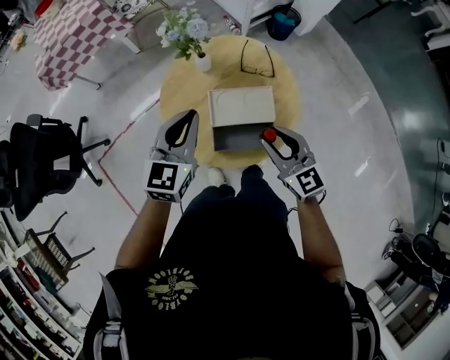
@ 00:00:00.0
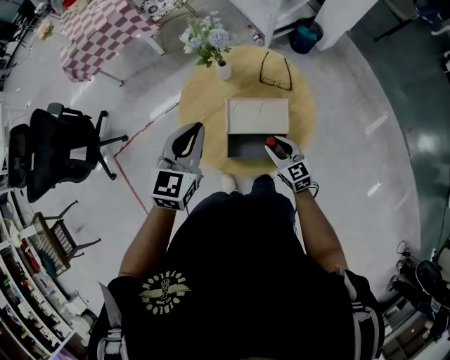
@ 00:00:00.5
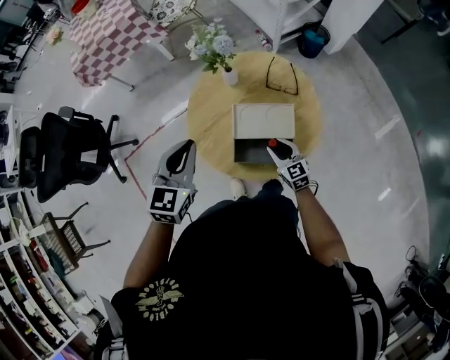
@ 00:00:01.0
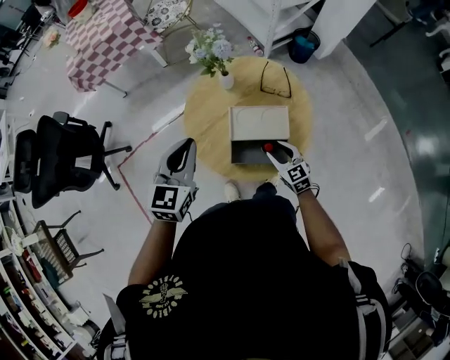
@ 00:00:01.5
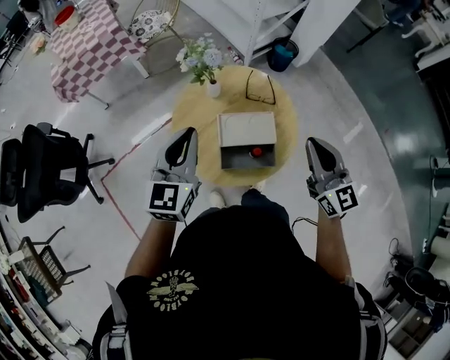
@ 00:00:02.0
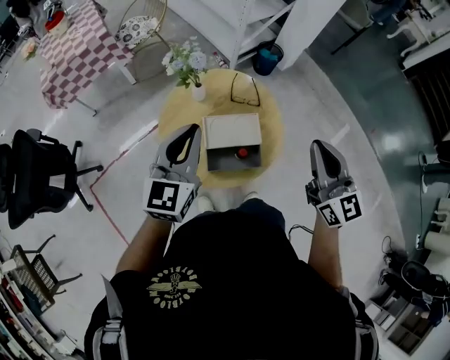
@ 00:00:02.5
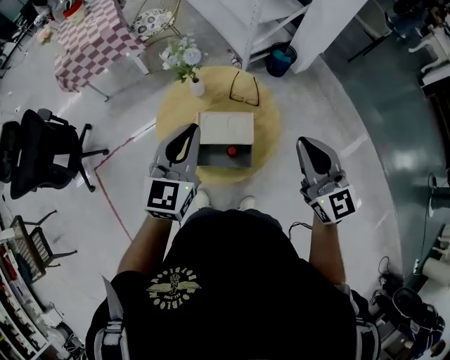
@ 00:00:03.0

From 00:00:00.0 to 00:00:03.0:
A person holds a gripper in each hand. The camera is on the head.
From 00:00:00.0 to 00:00:01.5: The right gripper shifts some 15 cm downward; the left gripper is displaced to the left by approximately 5 cm.
From 00:00:01.5 to 00:00:03.0: The right gripper goes approximately 35 cm upward, turns by about 30 degrees, and closes its fingers; the left gripper is displaced to the right and upward by some 15 cm.

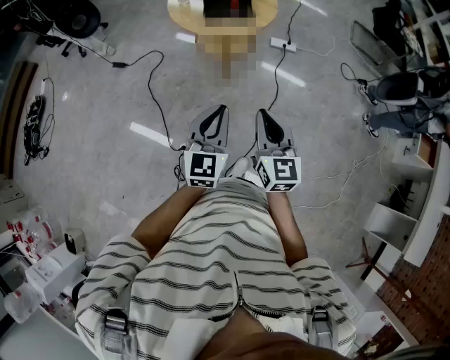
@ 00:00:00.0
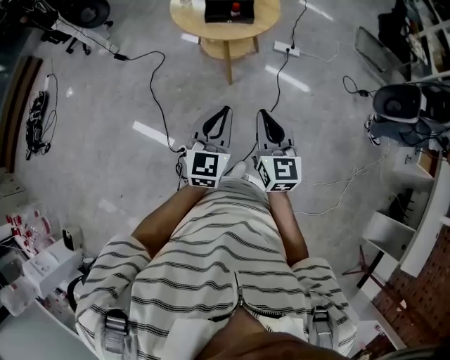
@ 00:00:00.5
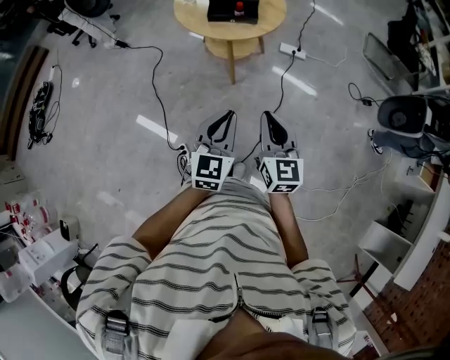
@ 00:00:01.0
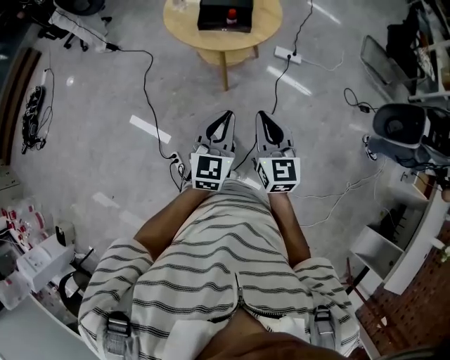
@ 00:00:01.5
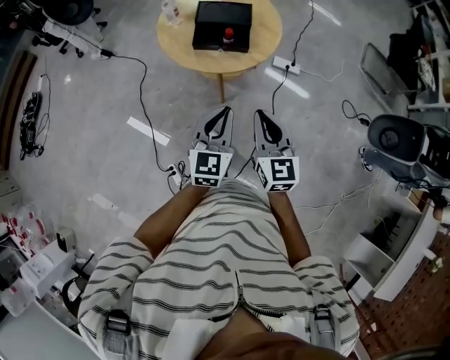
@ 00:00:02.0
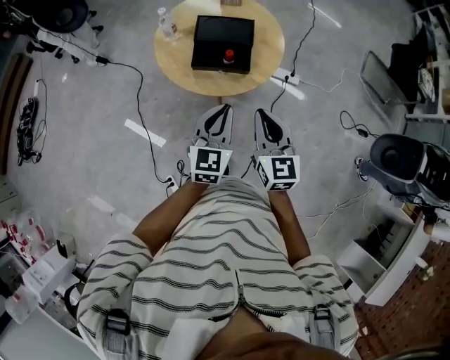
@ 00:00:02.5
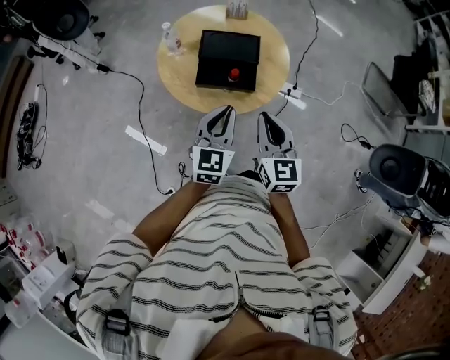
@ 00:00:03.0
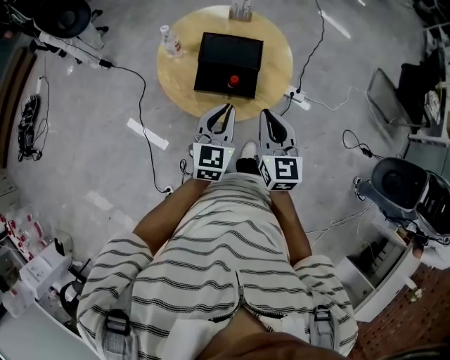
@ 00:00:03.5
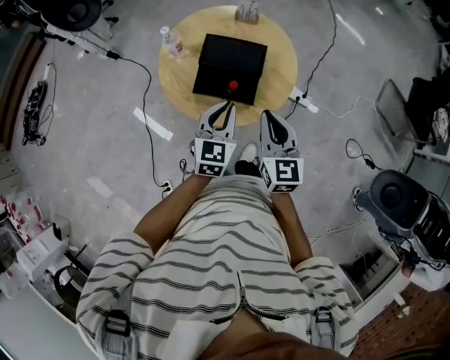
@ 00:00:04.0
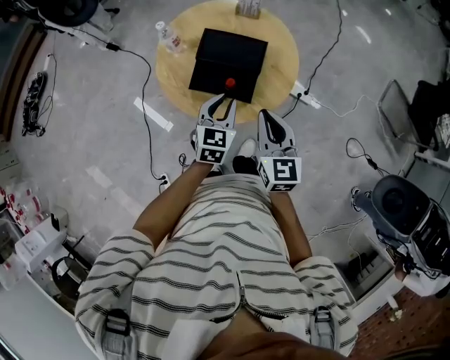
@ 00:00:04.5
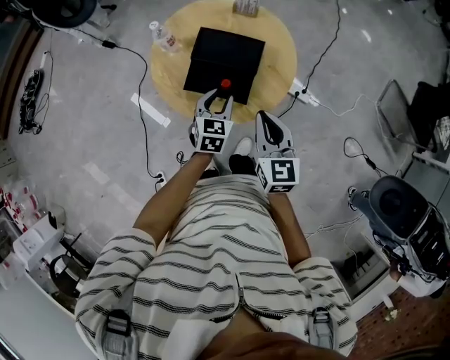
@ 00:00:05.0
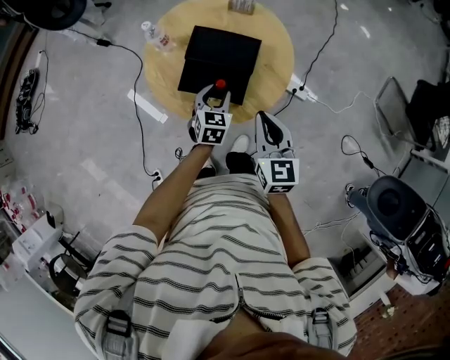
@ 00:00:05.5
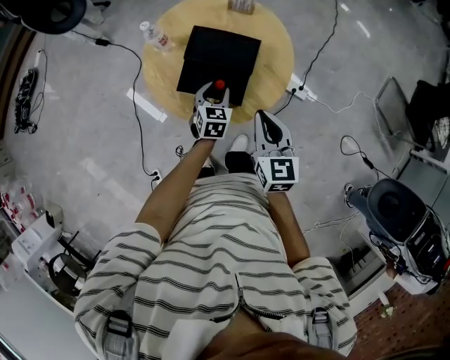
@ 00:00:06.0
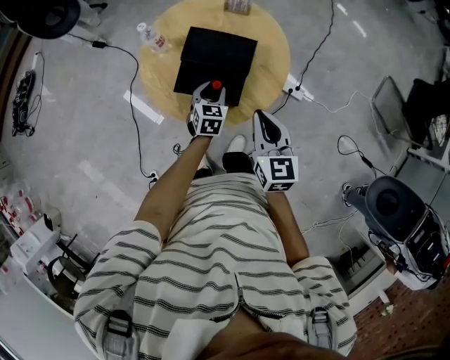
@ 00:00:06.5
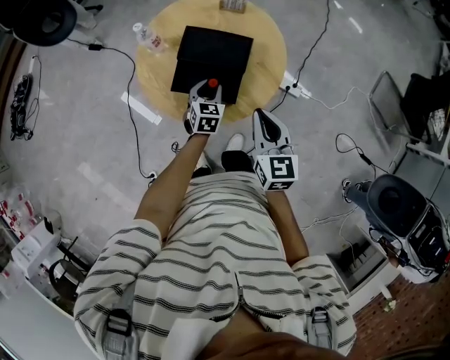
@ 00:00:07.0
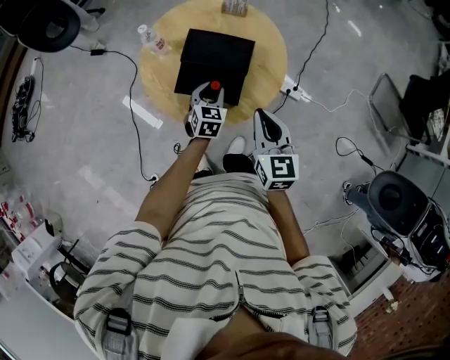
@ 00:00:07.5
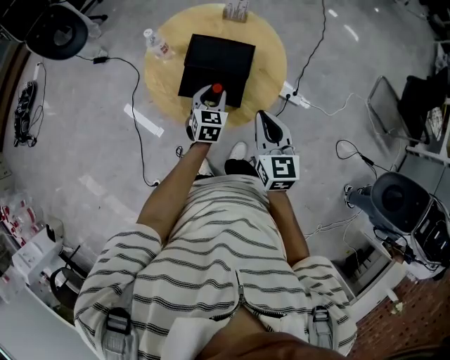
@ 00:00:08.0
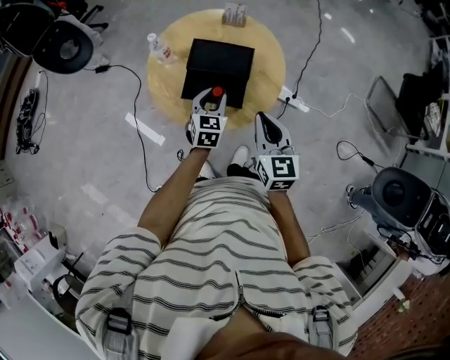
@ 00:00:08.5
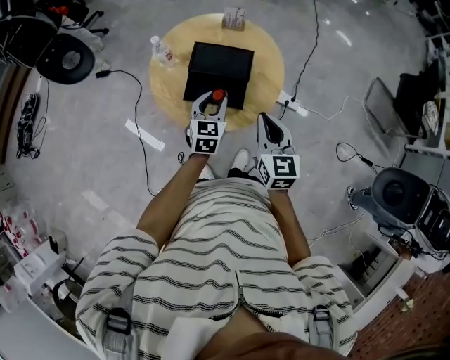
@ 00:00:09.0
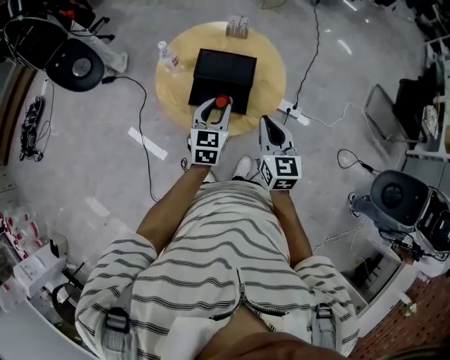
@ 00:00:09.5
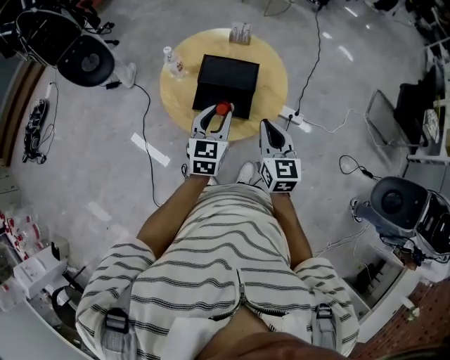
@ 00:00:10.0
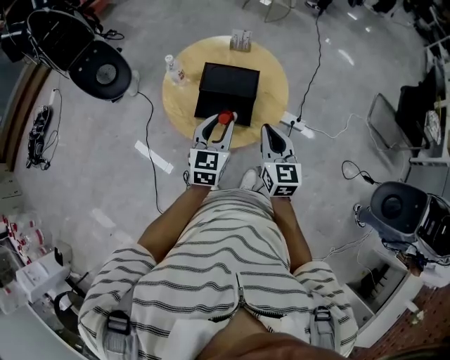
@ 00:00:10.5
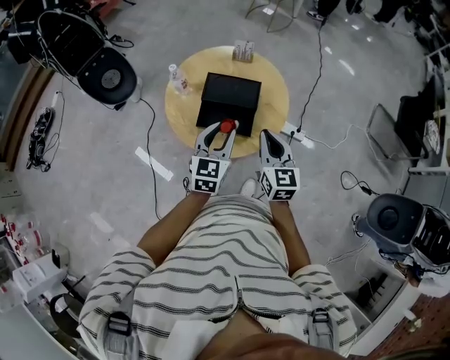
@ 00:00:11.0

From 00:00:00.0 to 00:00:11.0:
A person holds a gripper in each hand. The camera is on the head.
From 00:00:00.0 to 00:00:02.0: The grippers both shift forward by approximately 25 cm.
From 00:00:02.0 to 00:00:03.5: Both grippers travel together forward, approximately 25 cm.
From 00:00:03.5 to 00:00:05.5: The left gripper travels downward and forward by about 20 cm, turns by approximately 20 degrees, and opens. Meanwhile the right gripper goes approximately 5 cm forward.
From 00:00:05.5 to 00:00:07.5: The grippers make only small movements.
From 00:00:07.5 to 00:00:09.0: The left gripper travels upward by some 10 cm.
From 00:00:09.0 to 00:00:11.0: The left gripper is displaced upward by approximately 10 cm.

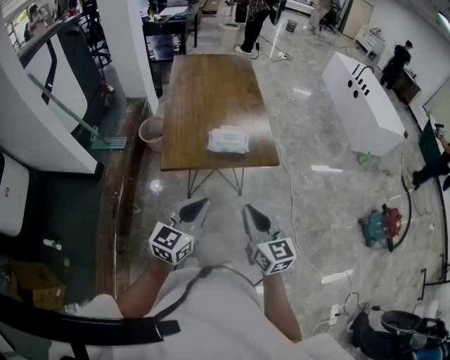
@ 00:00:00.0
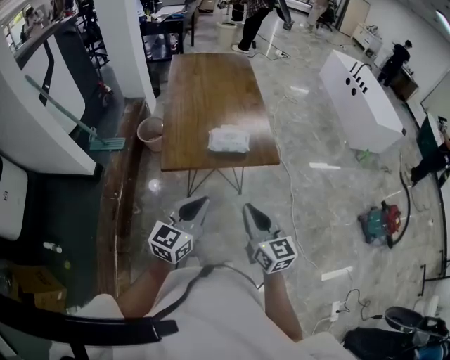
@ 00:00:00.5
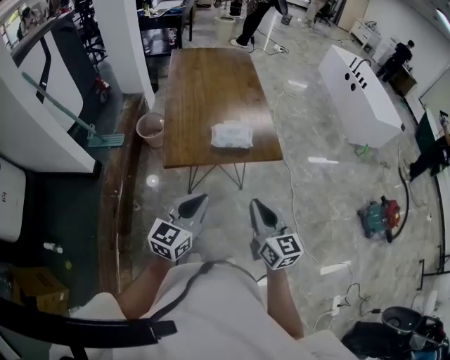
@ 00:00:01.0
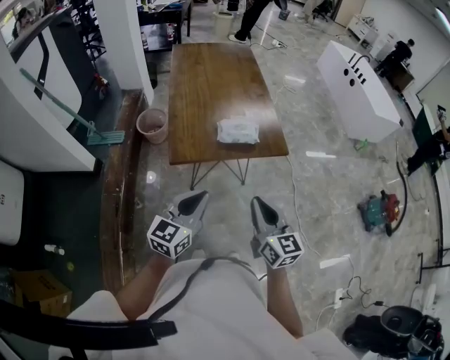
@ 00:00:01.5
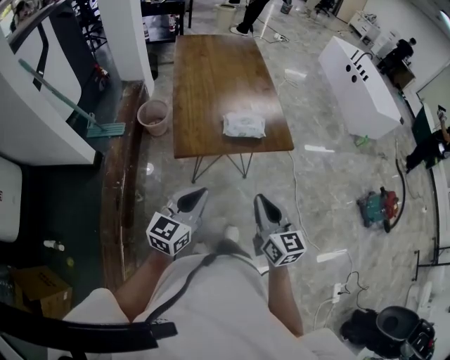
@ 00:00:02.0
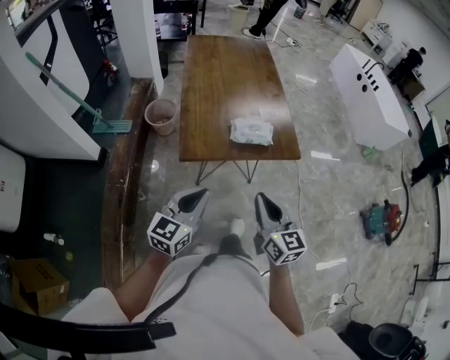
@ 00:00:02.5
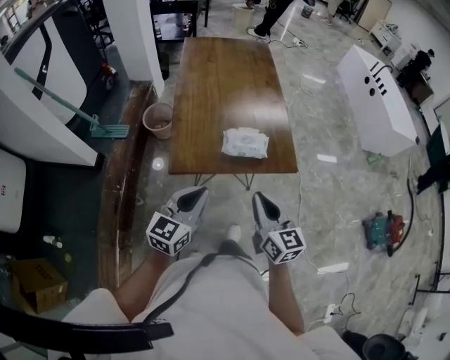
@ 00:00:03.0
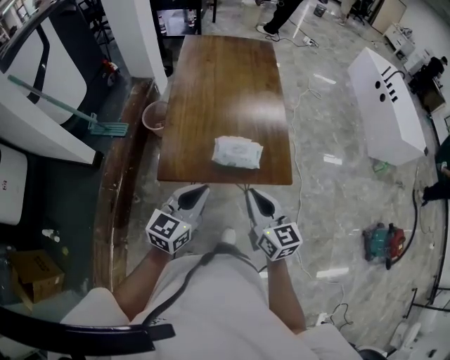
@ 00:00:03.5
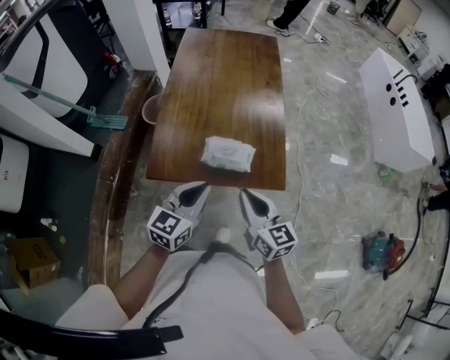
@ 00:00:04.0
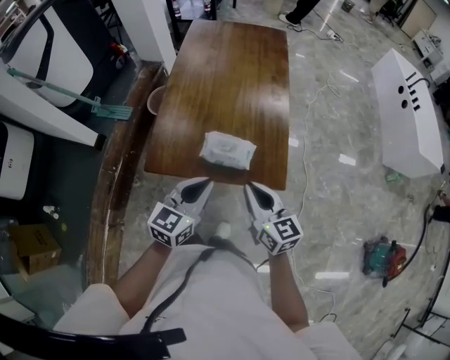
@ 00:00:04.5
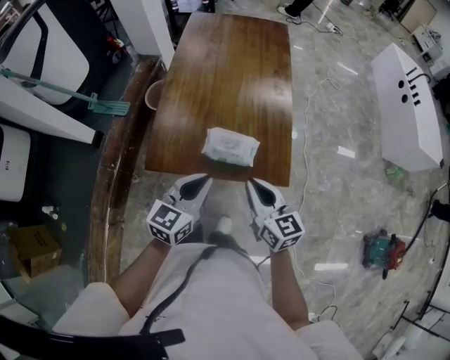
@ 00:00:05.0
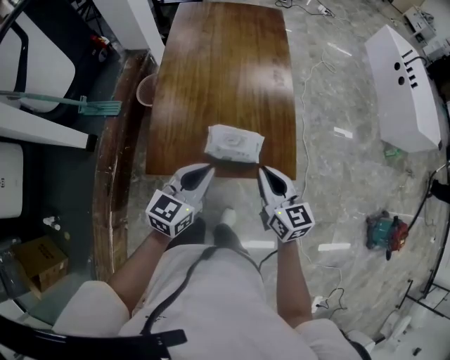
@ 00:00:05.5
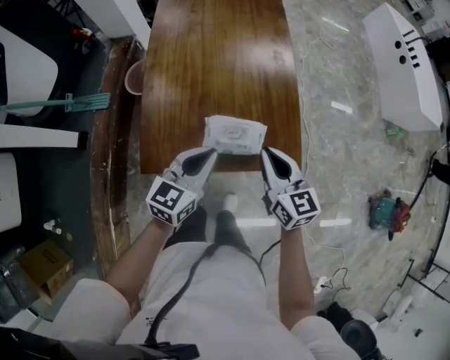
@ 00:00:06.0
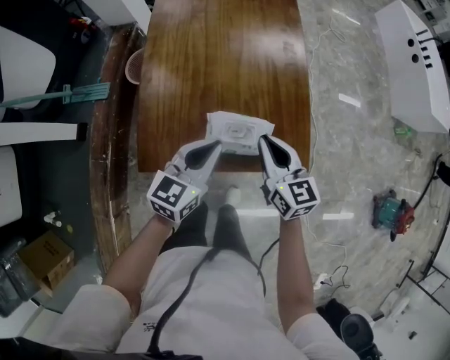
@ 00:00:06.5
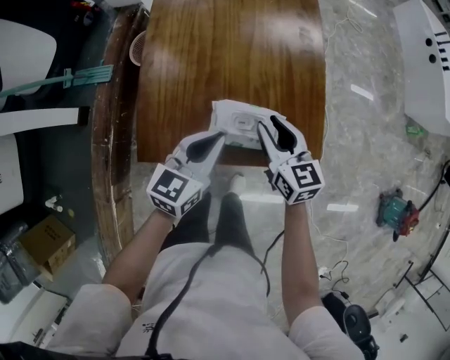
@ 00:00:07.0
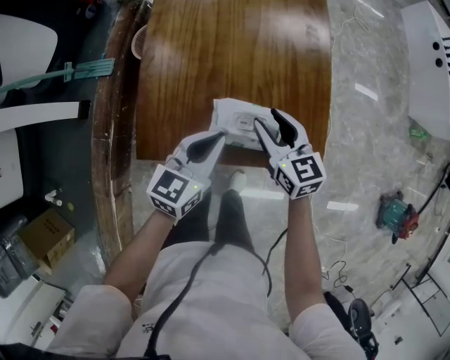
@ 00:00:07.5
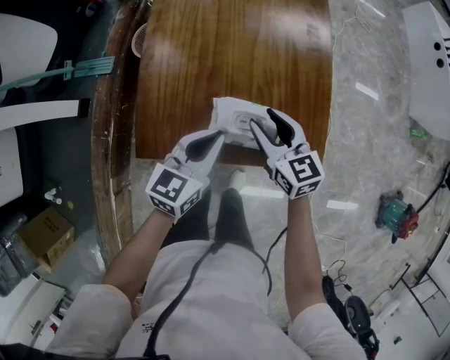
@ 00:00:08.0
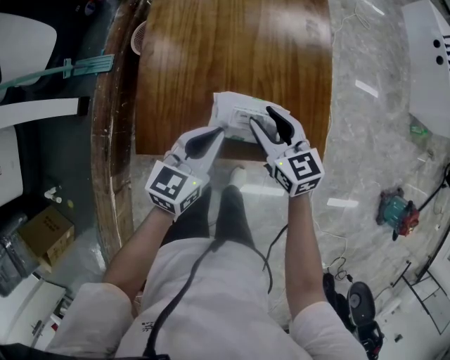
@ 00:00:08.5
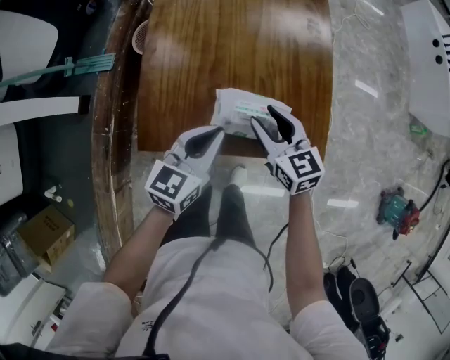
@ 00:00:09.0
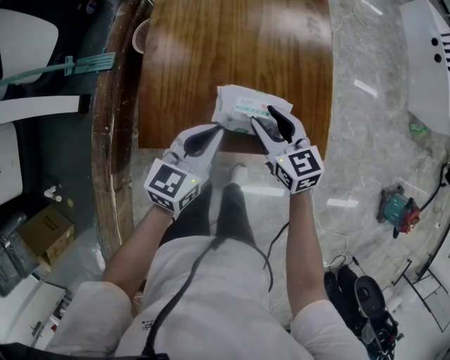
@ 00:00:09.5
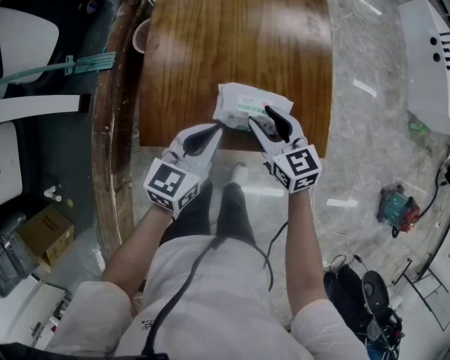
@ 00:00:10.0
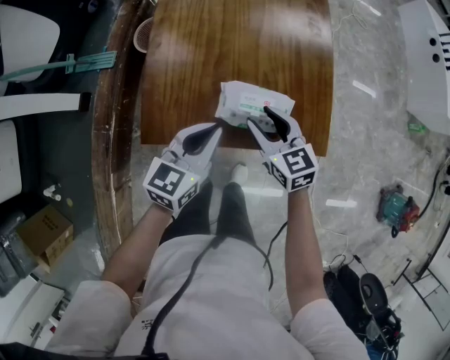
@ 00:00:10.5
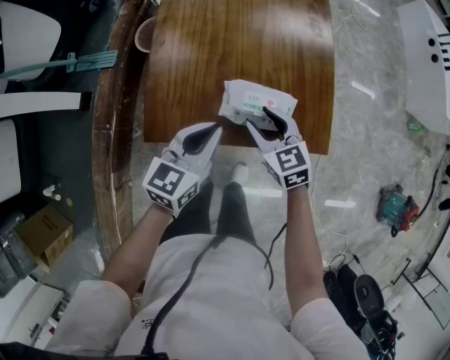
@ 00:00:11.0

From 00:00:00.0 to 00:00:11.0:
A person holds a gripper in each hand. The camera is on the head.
From 00:00:00.0 to 00:00:02.0: The grippers both shift to the left by roughly 10 cm.
From 00:00:02.0 to 00:00:03.5: The left gripper shifts approximately 20 cm forward and to the right; the right gripper shifts some 20 cm forward.
From 00:00:03.5 to 00:00:05.5: The right gripper moves forward, to the right and downward, some 15 cm. Meanwhile the left gripper shifts about 10 cm forward.
From 00:00:05.5 to 00:00:07.5: The right gripper is displaced forward and downward by some 20 cm, and opens up. The left gripper travels downward and forward by some 15 cm.
From 00:00:07.5 to 00:00:09.0: The grippers make only small movements.
From 00:00:09.0 to 00:00:11.0: The right gripper moves about 5 cm.

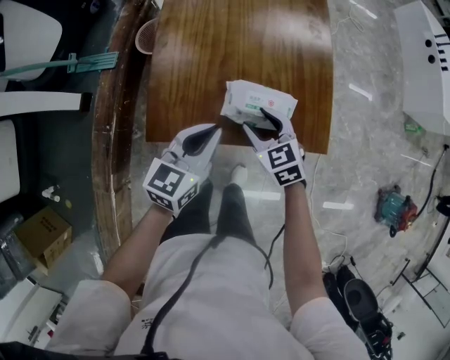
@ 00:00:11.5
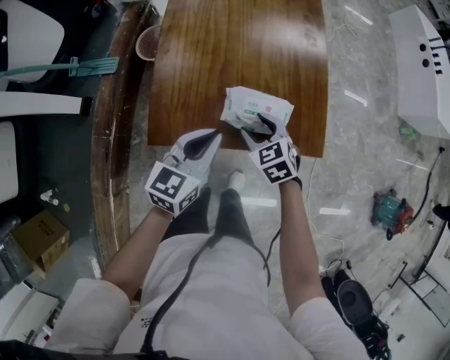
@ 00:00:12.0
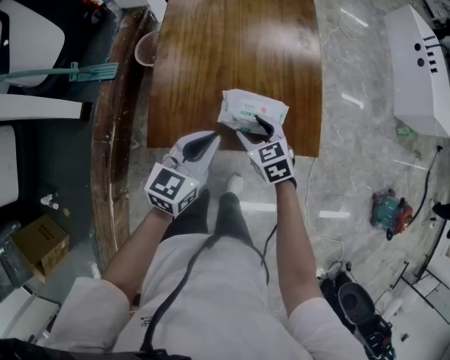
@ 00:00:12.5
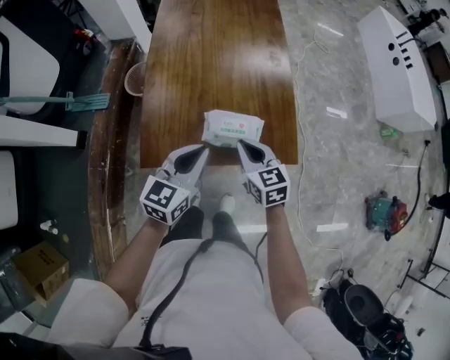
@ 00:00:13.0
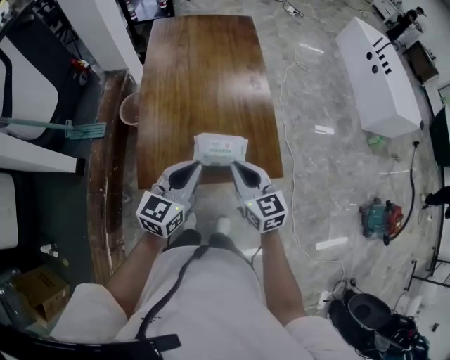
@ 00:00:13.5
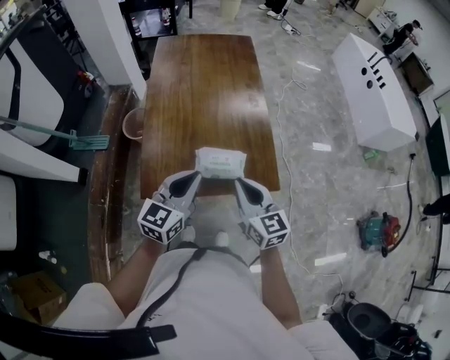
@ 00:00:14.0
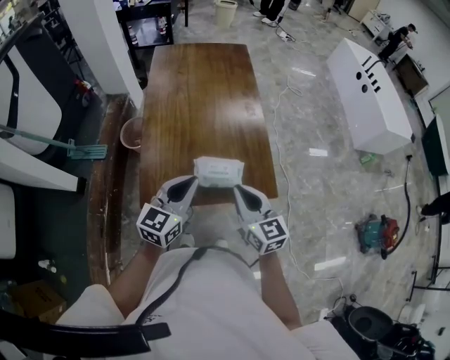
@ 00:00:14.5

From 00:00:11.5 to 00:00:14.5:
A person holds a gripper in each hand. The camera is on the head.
From 00:00:11.5 to 00:00:13.0: The grippers both shift upward by approximately 5 cm. The right gripper turns by approximately 20 degrees, and closes up.
From 00:00:13.0 to 00:00:14.5: The left gripper shifts roughly 10 cm upward, while the right gripper goes some 15 cm upward.
